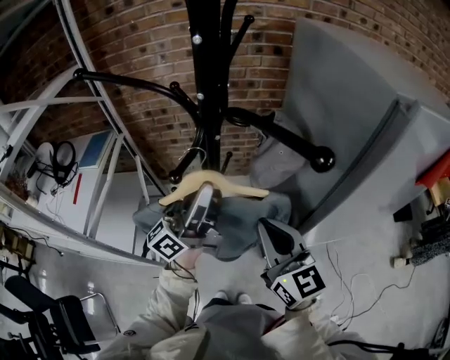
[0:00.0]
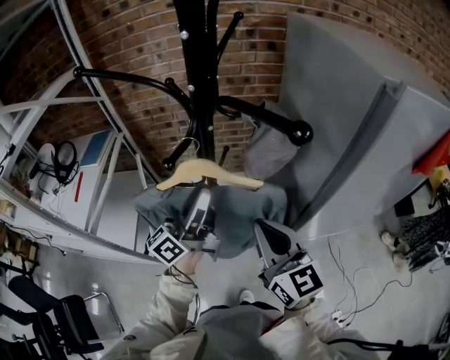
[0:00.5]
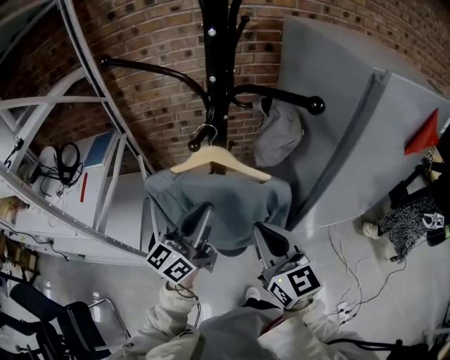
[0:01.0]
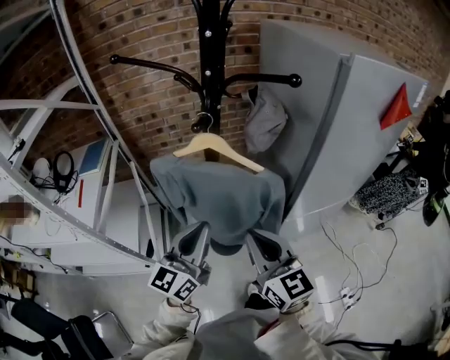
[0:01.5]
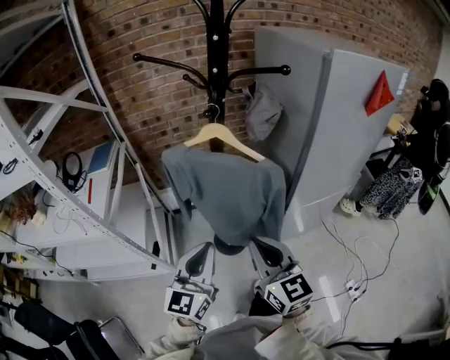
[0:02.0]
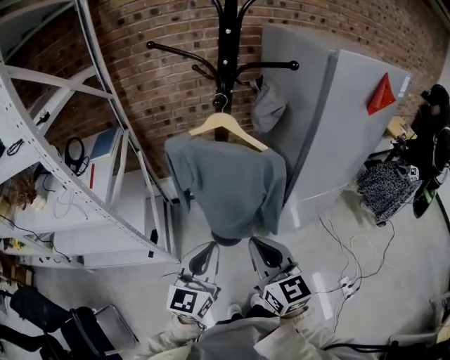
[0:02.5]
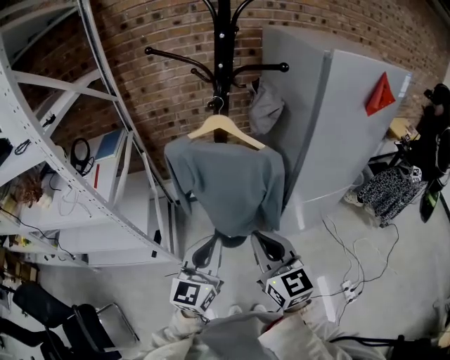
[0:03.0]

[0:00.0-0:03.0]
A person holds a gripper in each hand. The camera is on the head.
0:00.0 to 0:01.5: The grippers both shift backward by some 20 cm. The left gripper turns by roughly 40 degrees, and closes.
0:01.5 to 0:03.0: The two grippers go approximately 15 cm backward.

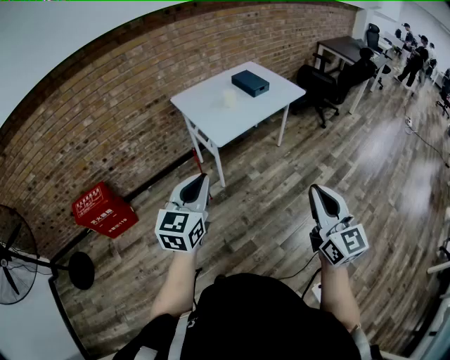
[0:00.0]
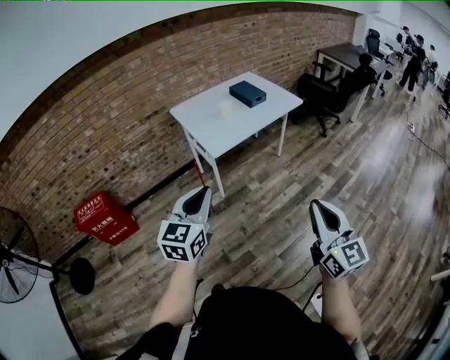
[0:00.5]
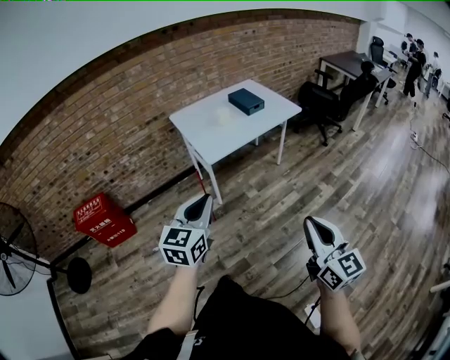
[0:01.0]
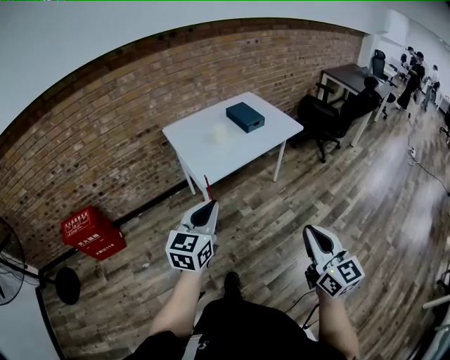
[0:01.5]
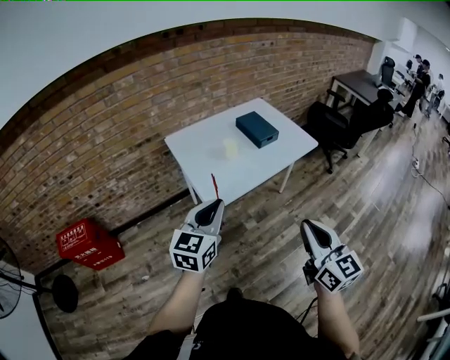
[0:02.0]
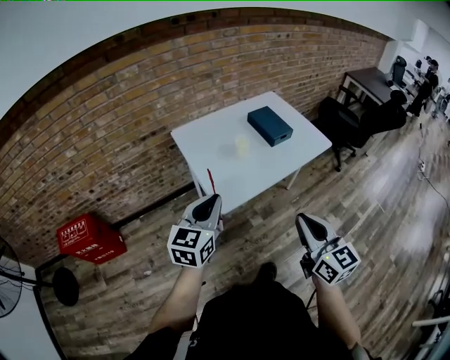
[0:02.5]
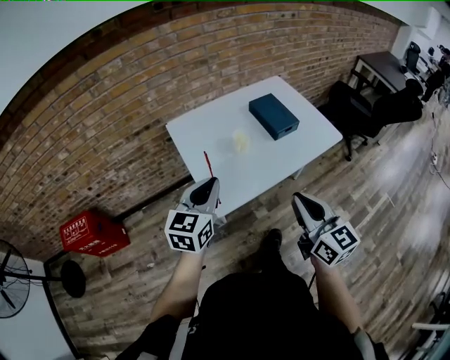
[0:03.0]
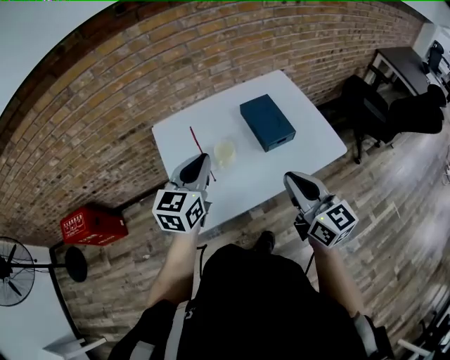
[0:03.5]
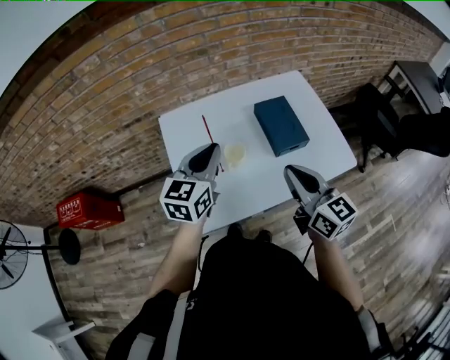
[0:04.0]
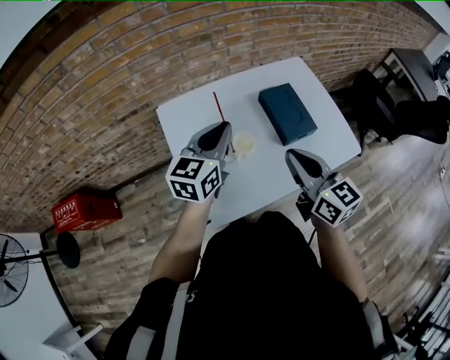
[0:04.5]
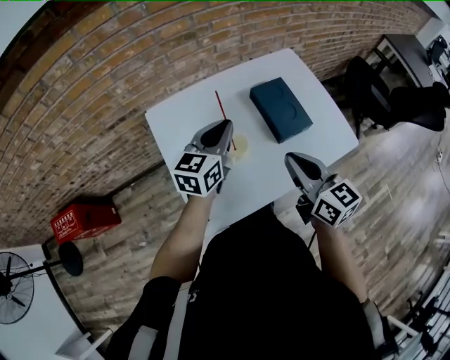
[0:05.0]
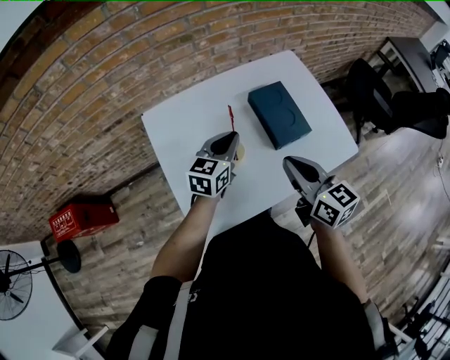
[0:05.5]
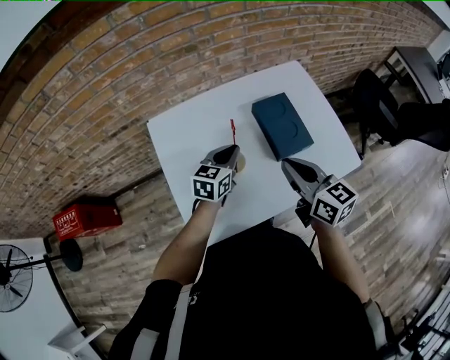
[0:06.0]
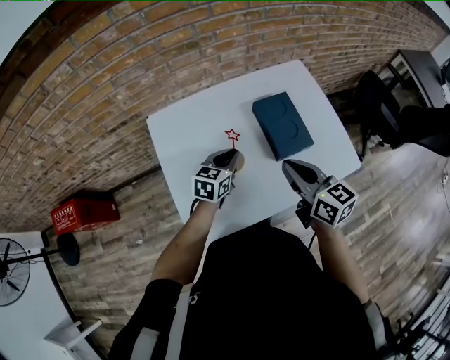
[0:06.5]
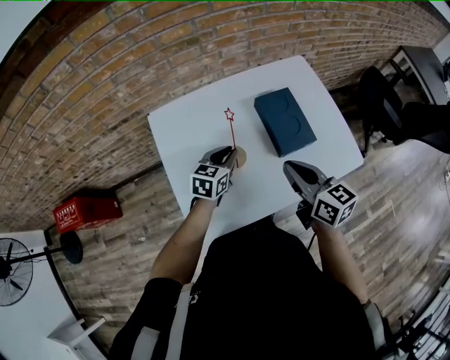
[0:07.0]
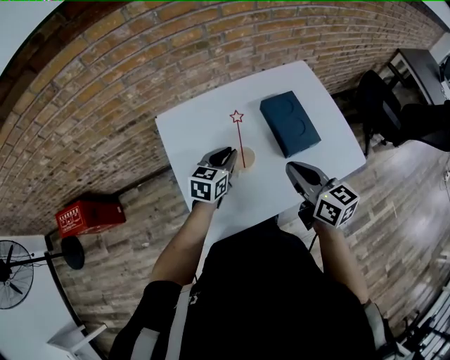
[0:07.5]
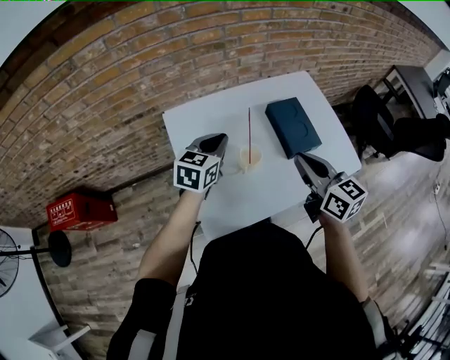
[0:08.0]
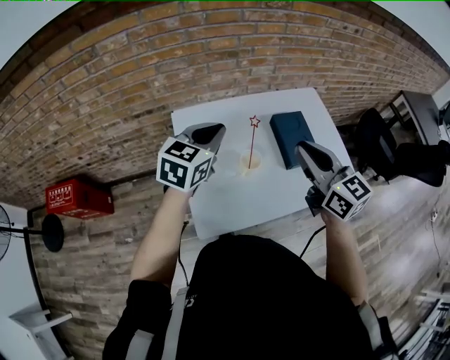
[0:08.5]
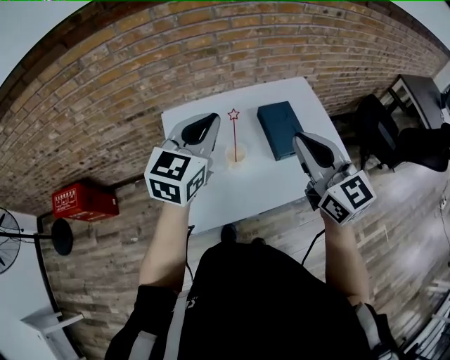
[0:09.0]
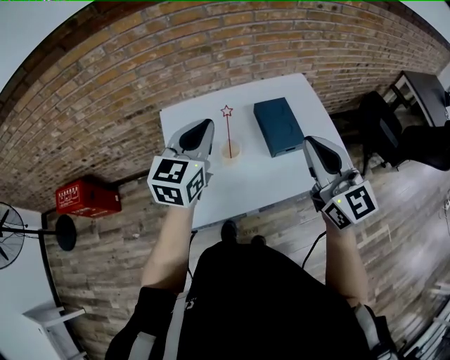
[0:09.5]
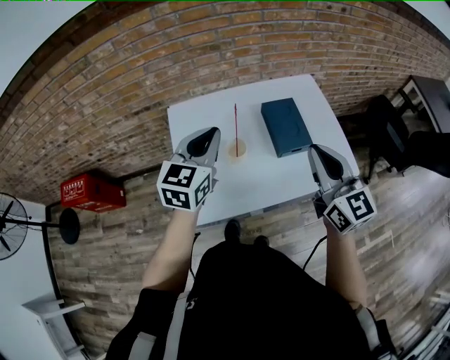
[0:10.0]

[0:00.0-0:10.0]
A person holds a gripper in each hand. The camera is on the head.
0:00.0 to 0:02.0: The grippers both shift forward by some 25 cm.
0:02.0 to 0:04.0: The two grippers go approximately 40 cm forward. The right gripper changes its angle by some 30 degrees.
0:04.0 to 0:06.0: The left gripper is displaced downward and forward by roughly 20 cm, while the right gripper is displaced forward and downward by approximately 10 cm.
0:06.0 to 0:08.0: The right gripper shifts by roughly 5 cm; the left gripper is displaced to the left and upward by approximately 15 cm.
0:08.0 to 0:10.0: The left gripper heads upward and backward, covering about 15 cm. Meanwhile the right gripper goes some 15 cm to the right and upward, and swivels about 20 degrees.

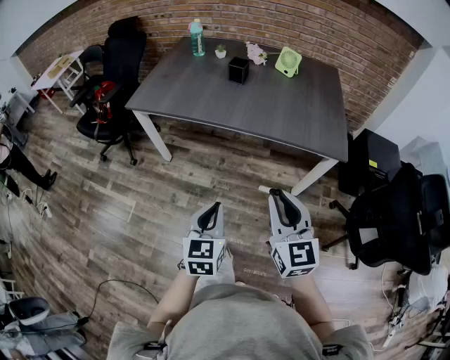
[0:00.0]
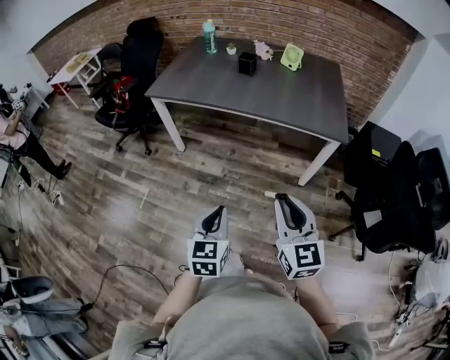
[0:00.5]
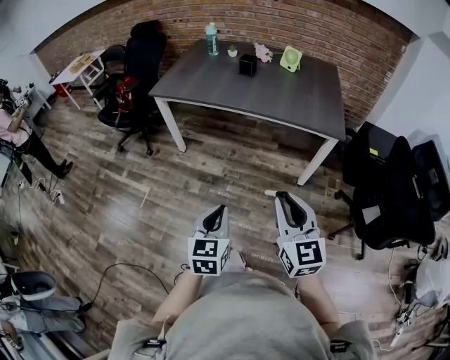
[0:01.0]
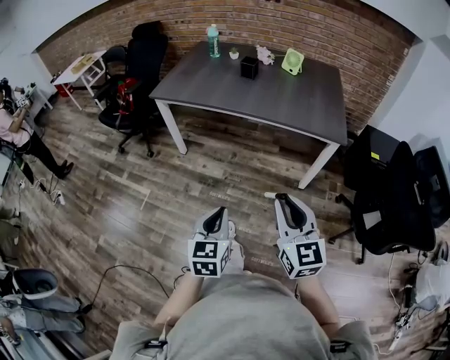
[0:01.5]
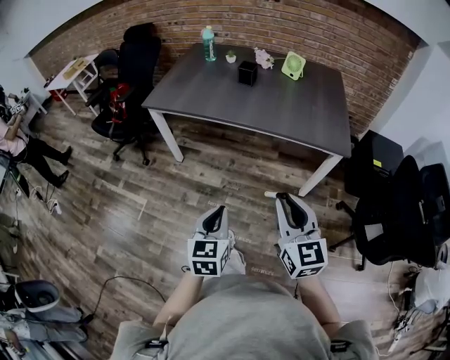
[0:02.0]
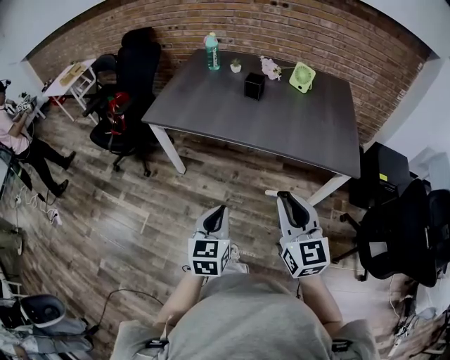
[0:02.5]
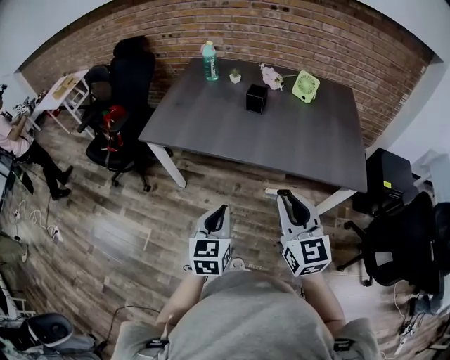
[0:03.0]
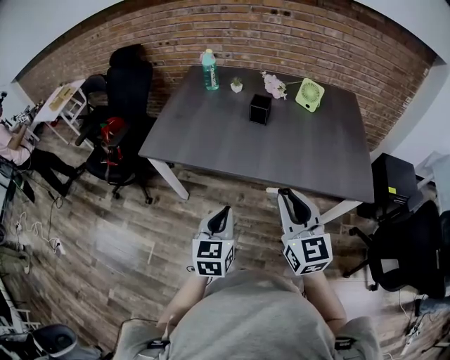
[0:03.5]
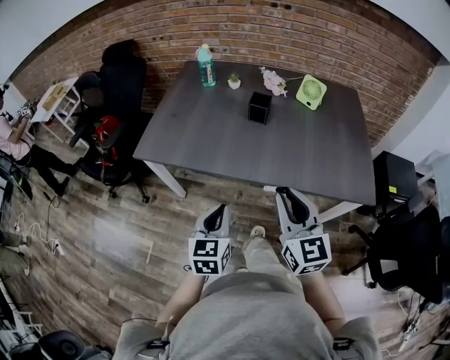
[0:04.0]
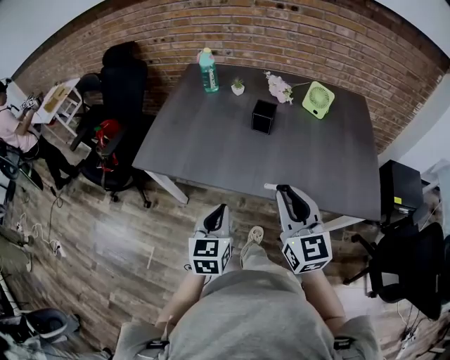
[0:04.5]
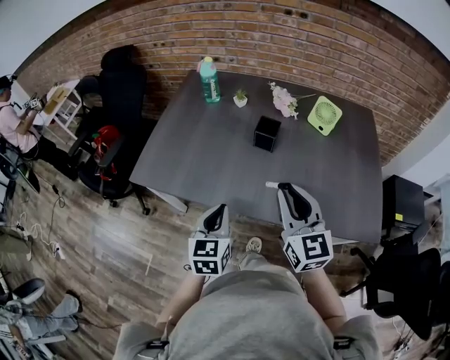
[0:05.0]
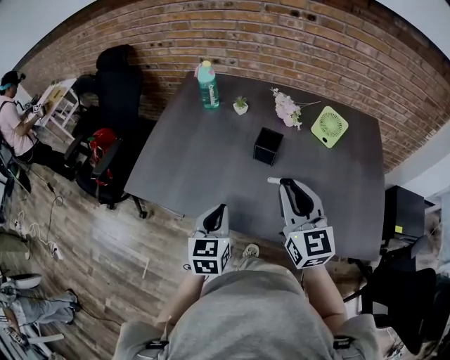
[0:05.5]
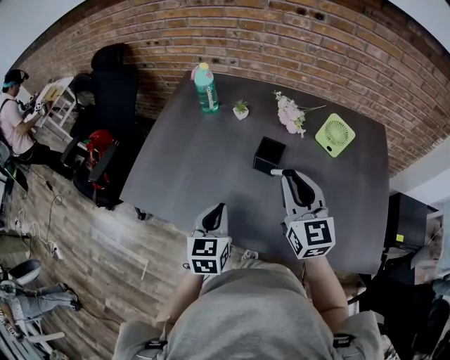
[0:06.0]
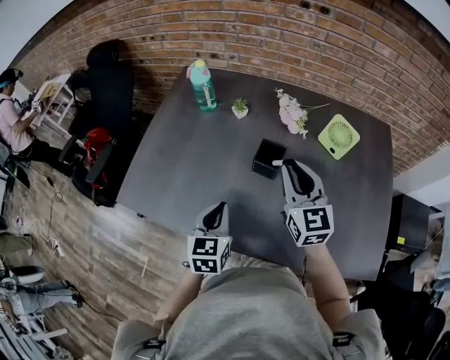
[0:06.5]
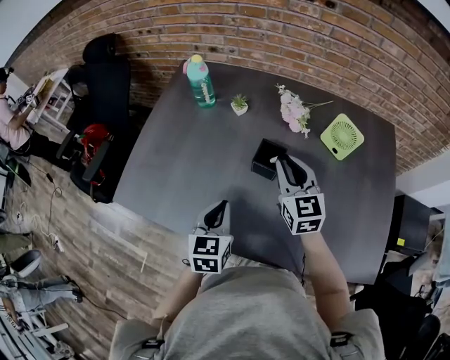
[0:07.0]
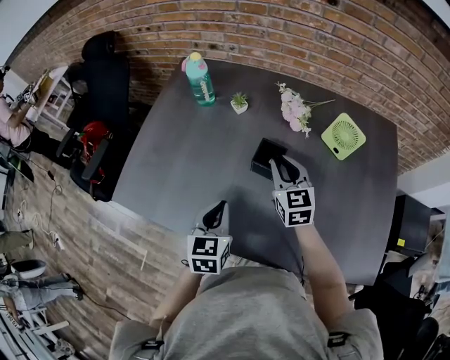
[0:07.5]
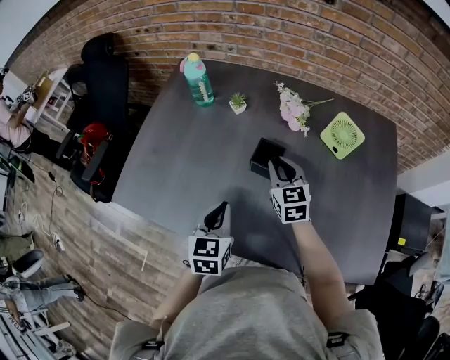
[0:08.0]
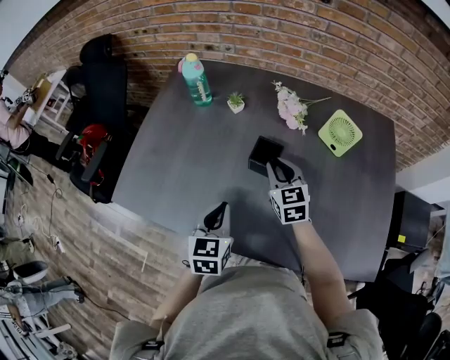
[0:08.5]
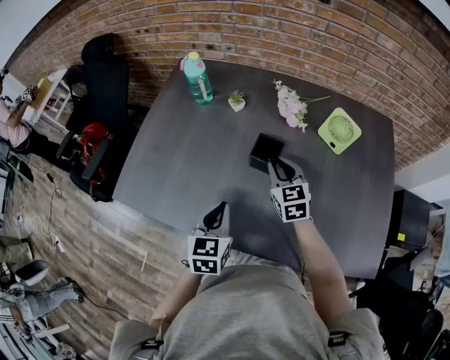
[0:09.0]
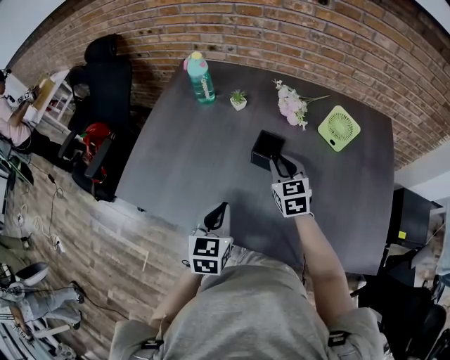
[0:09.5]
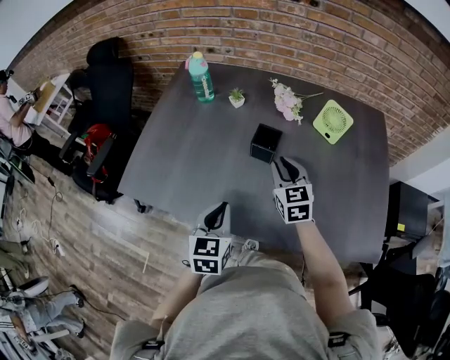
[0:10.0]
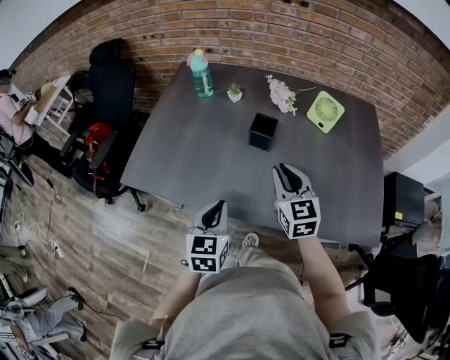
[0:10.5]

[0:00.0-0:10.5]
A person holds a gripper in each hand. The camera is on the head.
0:00.0 to 0:02.0: The two grippers go about 10 cm backward.
0:02.0 to 0:04.0: The two grippers go roughly 30 cm forward.
0:04.0 to 0:06.5: The two grippers go approximately 35 cm forward.
0:06.5 to 0:08.5: The right gripper travels downward and forward by about 15 cm.
0:08.5 to 0:10.5: The left gripper shifts approximately 15 cm backward, while the right gripper shifts roughly 20 cm backward and upward.

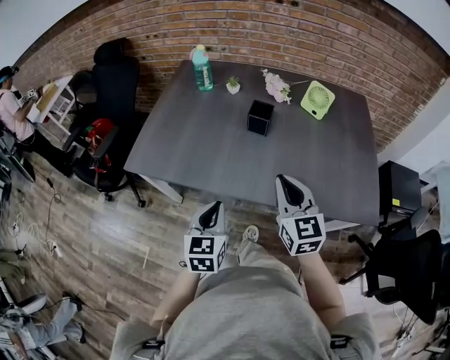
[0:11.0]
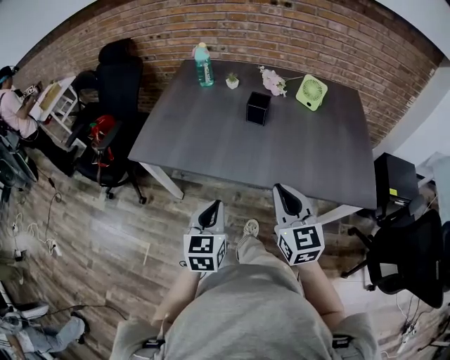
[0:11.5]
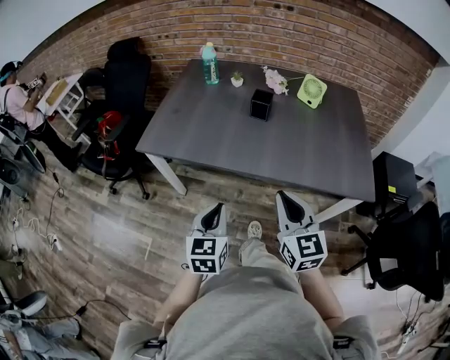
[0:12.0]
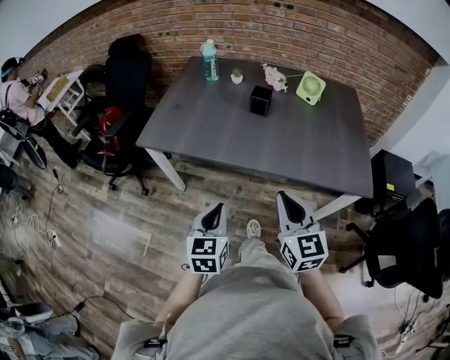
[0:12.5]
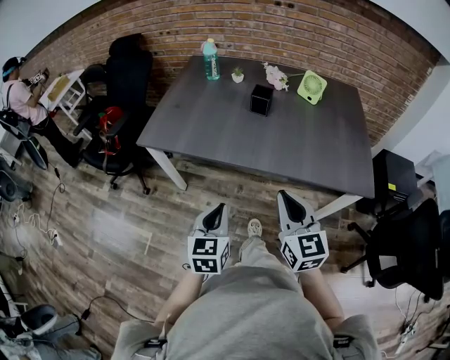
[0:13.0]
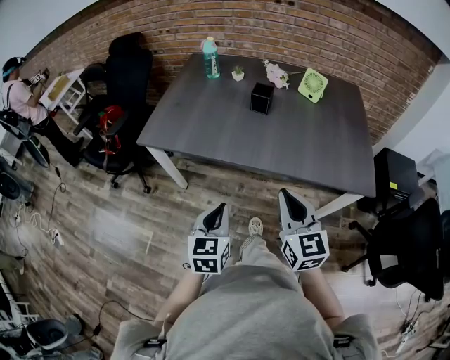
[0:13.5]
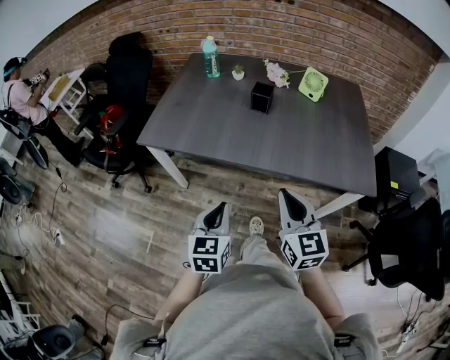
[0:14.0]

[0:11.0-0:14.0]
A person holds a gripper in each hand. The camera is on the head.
0:11.0 to 0:12.5: The grippers both shift backward by roughly 20 cm.
0:12.5 to 0:14.0: Both grippers stay put.
